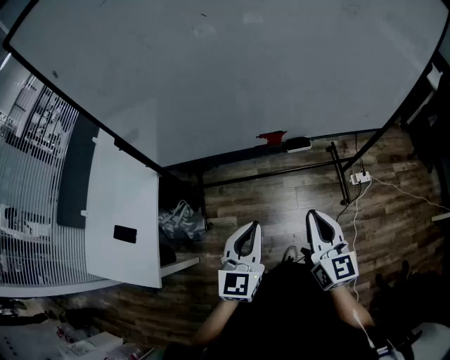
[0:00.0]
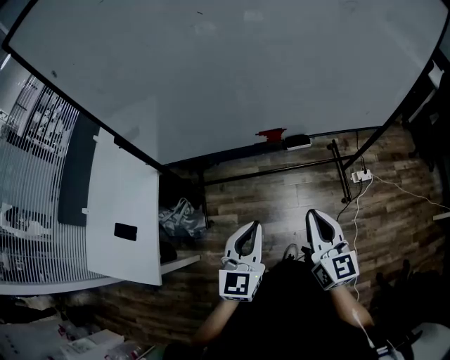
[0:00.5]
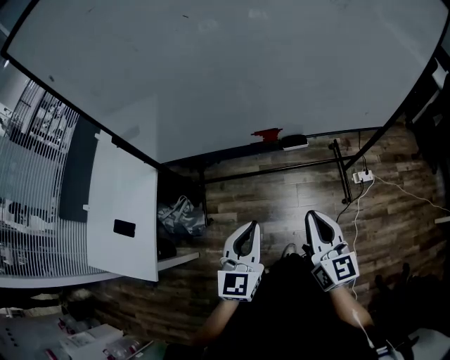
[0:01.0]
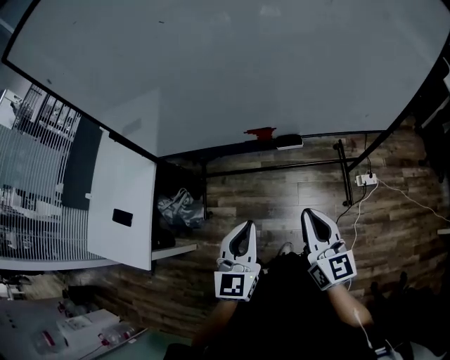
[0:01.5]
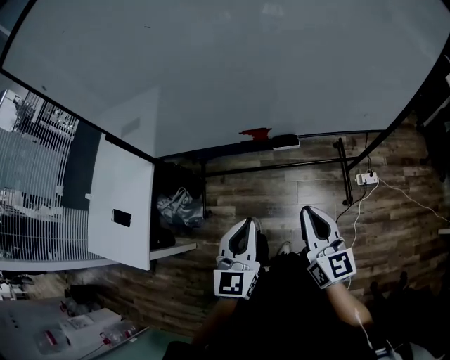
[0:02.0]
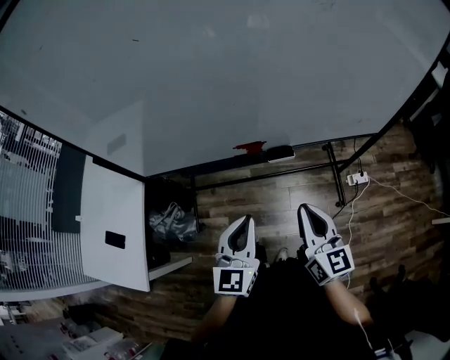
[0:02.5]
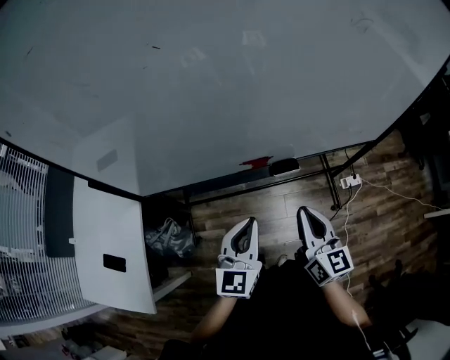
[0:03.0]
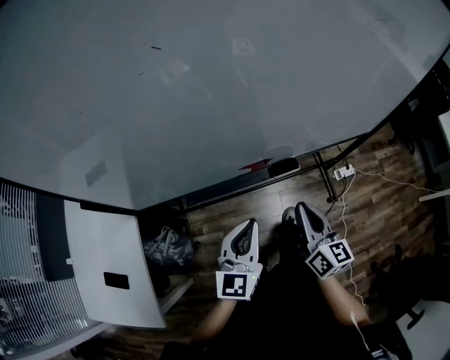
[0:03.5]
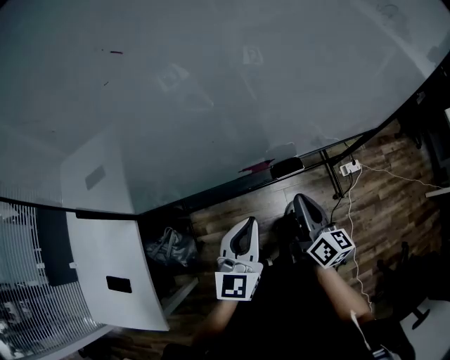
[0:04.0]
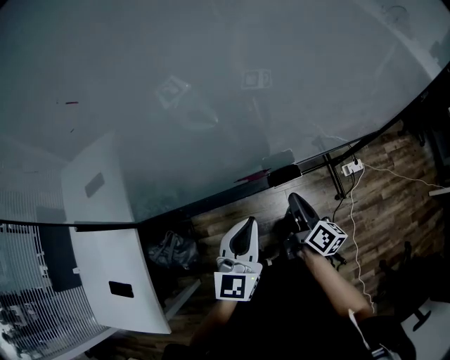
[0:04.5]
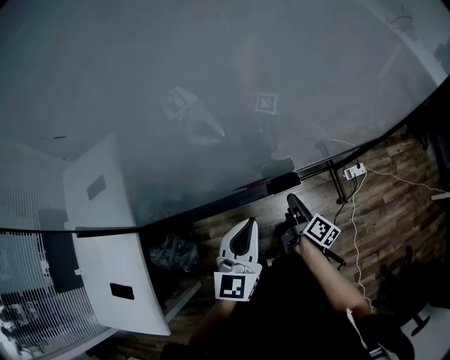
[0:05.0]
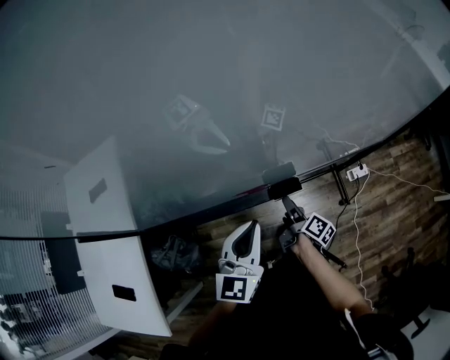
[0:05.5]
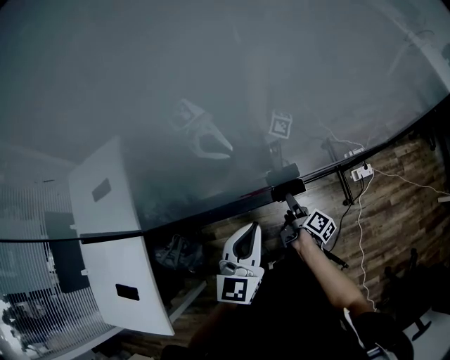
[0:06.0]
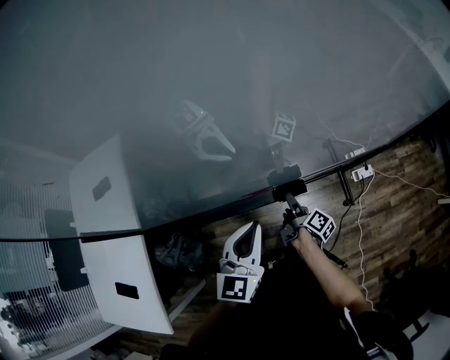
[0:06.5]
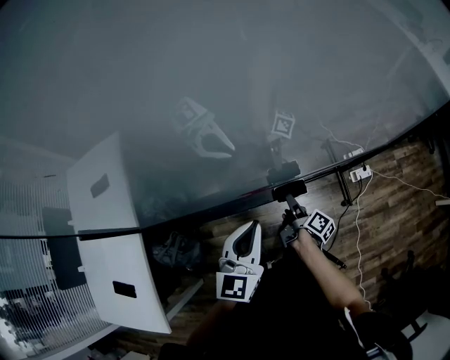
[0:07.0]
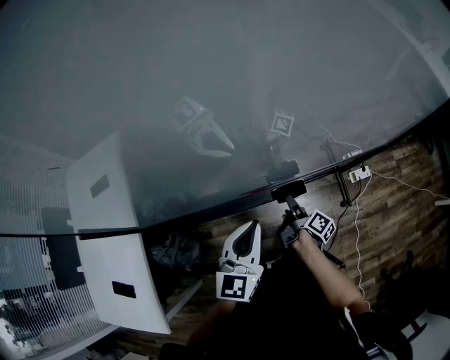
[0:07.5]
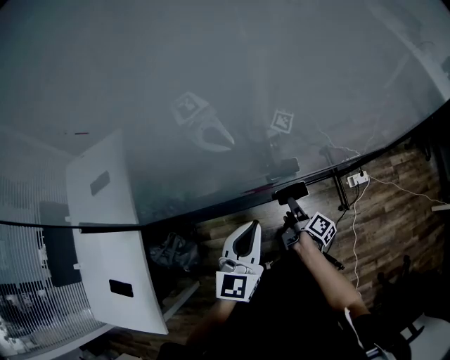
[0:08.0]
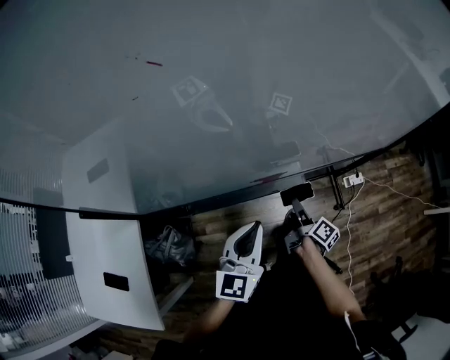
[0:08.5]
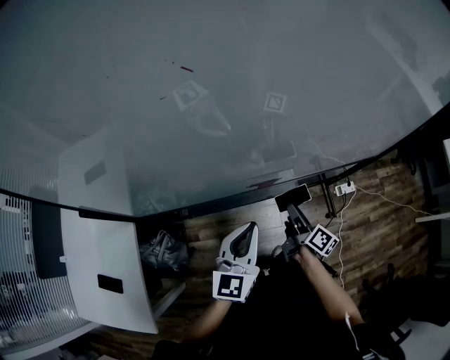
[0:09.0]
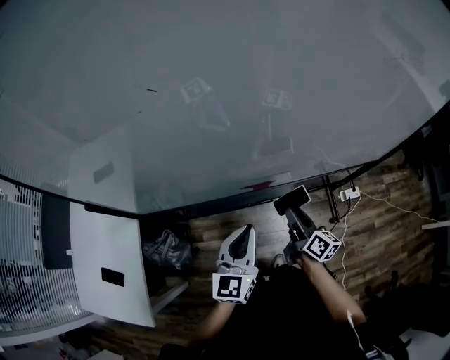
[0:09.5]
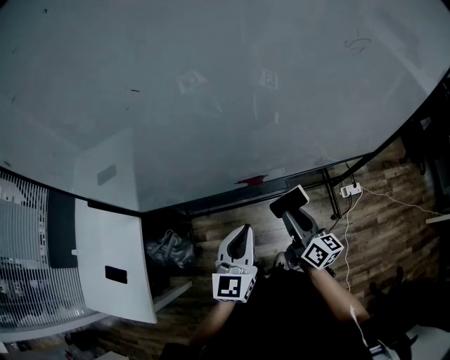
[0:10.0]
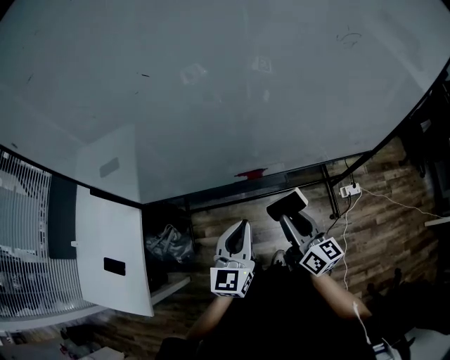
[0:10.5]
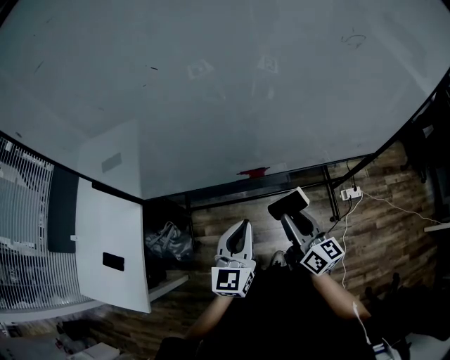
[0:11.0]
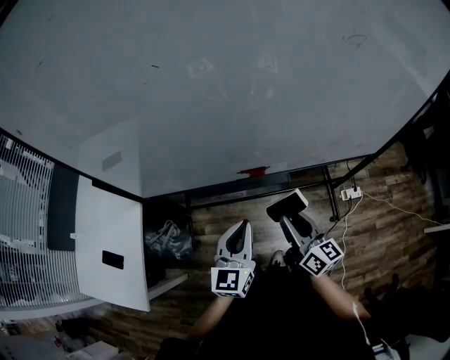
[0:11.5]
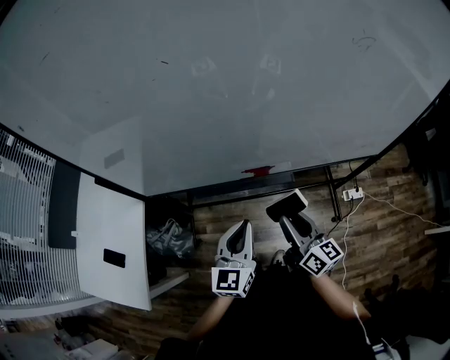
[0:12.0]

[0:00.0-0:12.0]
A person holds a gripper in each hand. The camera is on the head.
0:00.0 to 0:02.0: The grippers both shift to the right by approximately 10 cm.
0:02.0 to 0:04.0: The left gripper goes about 15 cm forward and to the left. Meanwhile the right gripper moves forward, downward and to the left, some 20 cm, and rotates about 30 degrees.
0:04.0 to 0:06.0: The right gripper moves downward and forward, roughly 20 cm, rotates around the line of its fingers by roughly 40 degrees, clockwise from behind, and opens its fingers. The left gripper shifts about 5 cm forward.
0:06.0 to 0:08.0: The two grippers keep their place.
0:08.0 to 0:10.0: The right gripper heads upward and backward, covering some 20 cm, and twists roughly 40 degrees counterclockwise, seen from behind; the left gripper heads backward, covering roughly 5 cm.
0:10.0 to 0:12.0: The right gripper ends up roughly 5 cm from where it was.

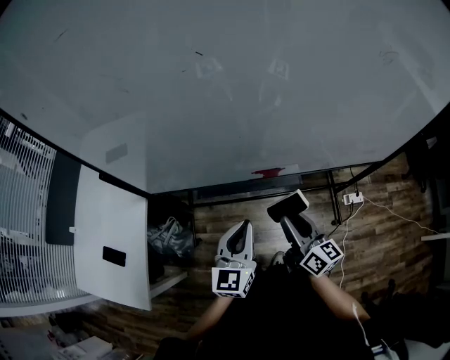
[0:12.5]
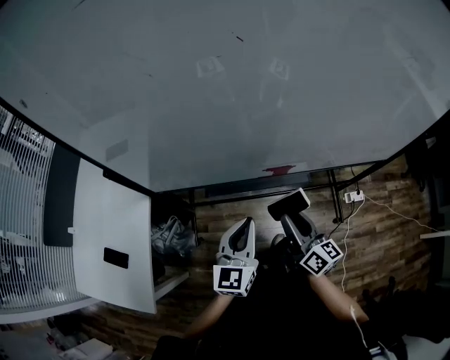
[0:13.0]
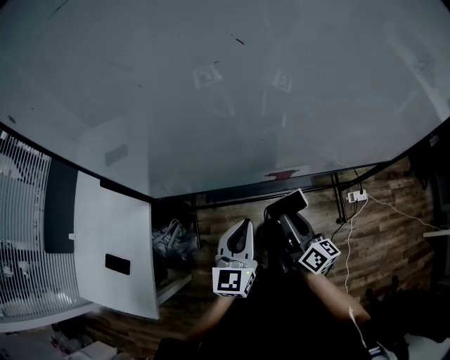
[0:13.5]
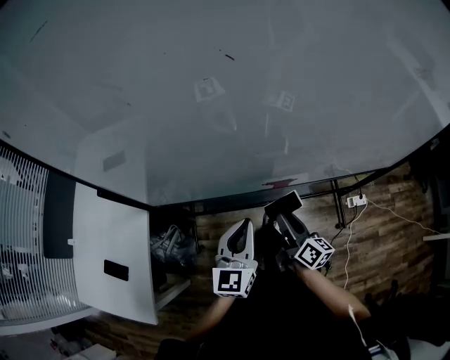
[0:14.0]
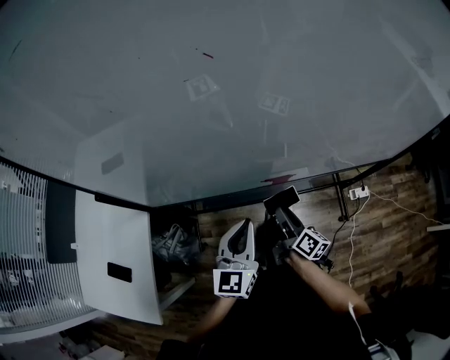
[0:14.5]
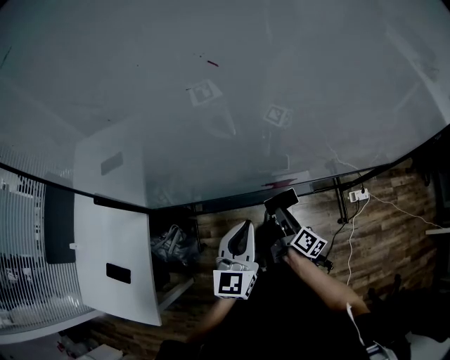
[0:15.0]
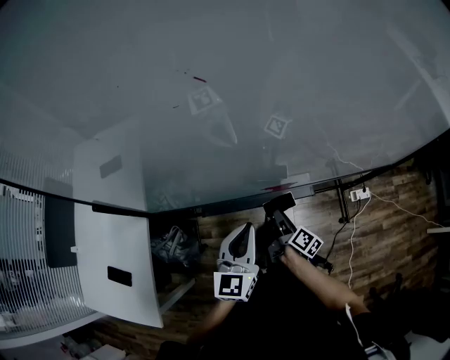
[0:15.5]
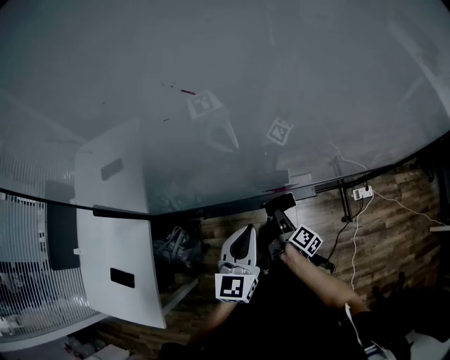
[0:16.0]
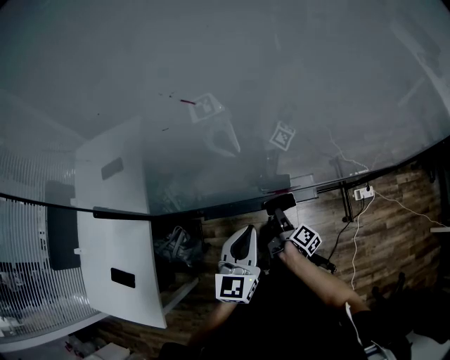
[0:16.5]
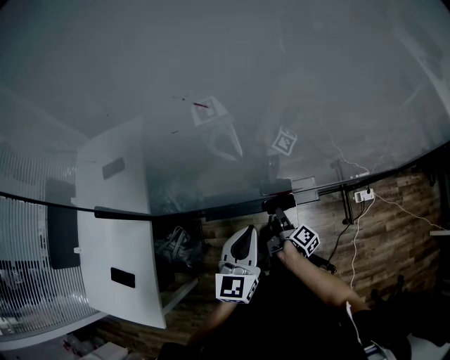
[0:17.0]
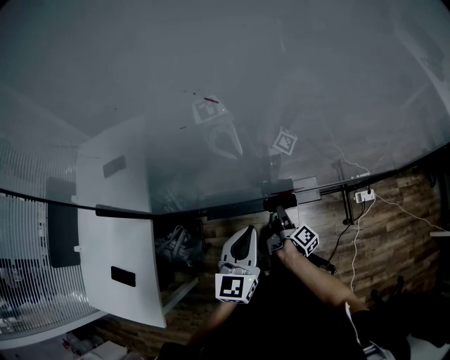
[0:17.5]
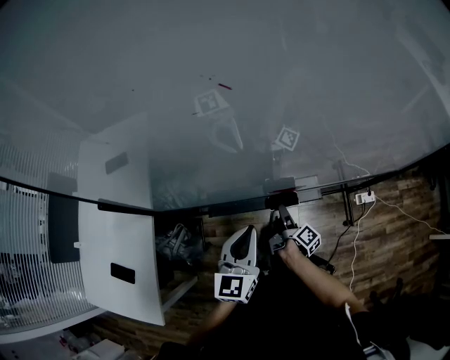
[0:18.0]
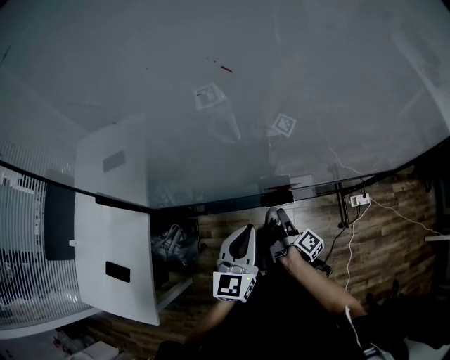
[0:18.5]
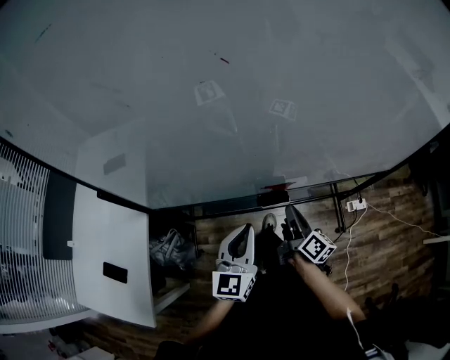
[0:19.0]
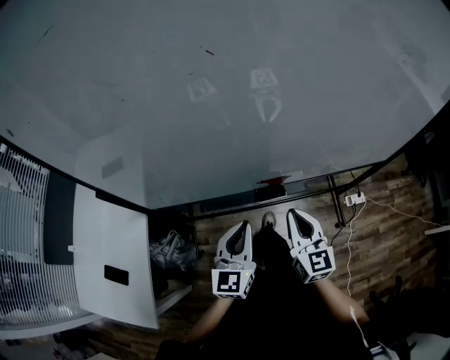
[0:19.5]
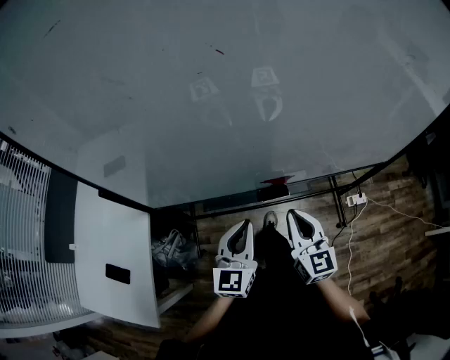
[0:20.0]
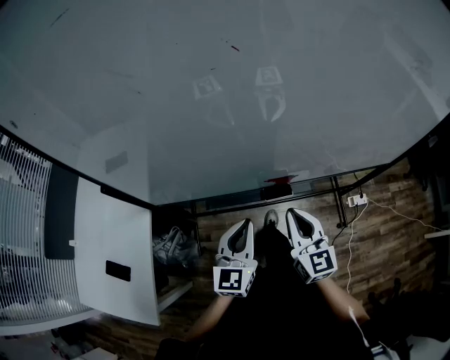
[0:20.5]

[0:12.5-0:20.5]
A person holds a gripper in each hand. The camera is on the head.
0:12.5 to 0:14.5: The left gripper shifts about 5 cm forward. The right gripper is displaced downward and forward by about 15 cm, and turns by approximately 30 degrees.
0:14.5 to 0:16.5: The right gripper moves downward, roughly 10 cm, and changes its angle by roughly 20 degrees.
0:16.5 to 0:18.5: The grippers stay close to where they were, moving slightly.
0:18.5 to 0:20.5: The right gripper moves upward, roughly 20 cm, rolls counterclockwise, seen from behind, by approximately 80 degrees, and closes its fingers.

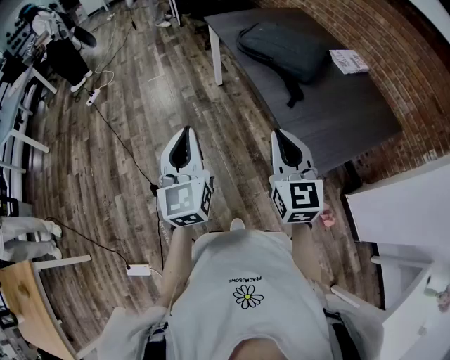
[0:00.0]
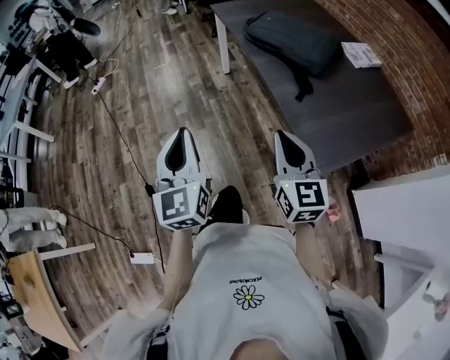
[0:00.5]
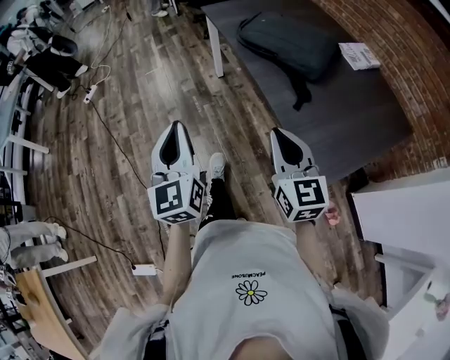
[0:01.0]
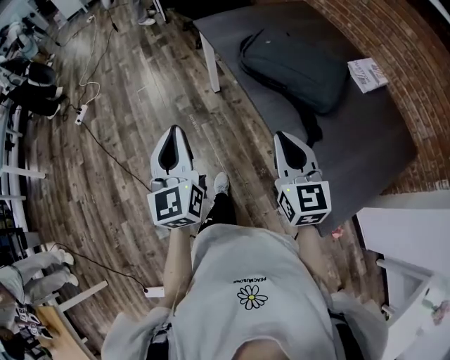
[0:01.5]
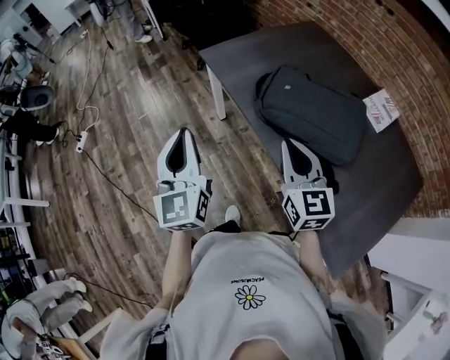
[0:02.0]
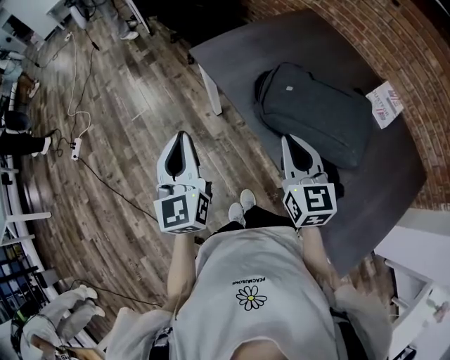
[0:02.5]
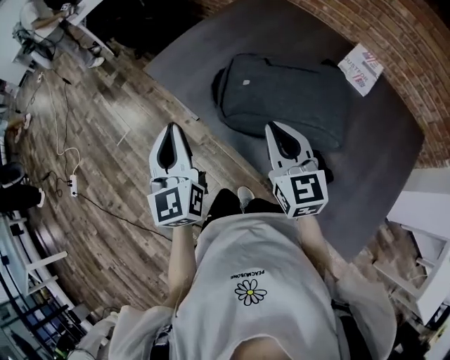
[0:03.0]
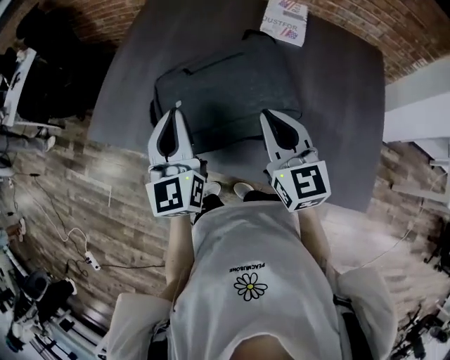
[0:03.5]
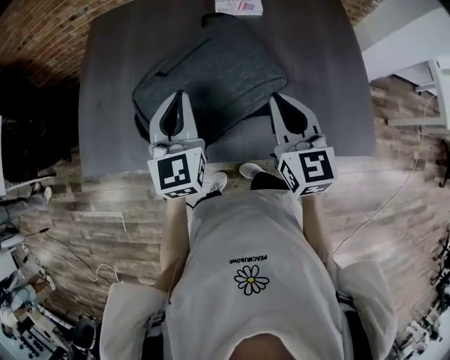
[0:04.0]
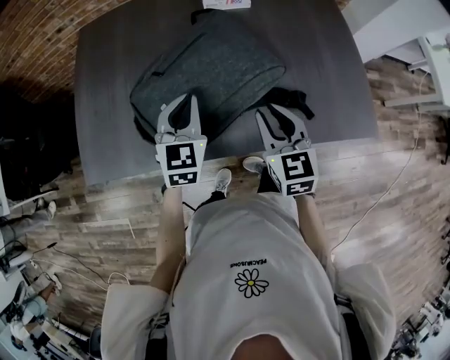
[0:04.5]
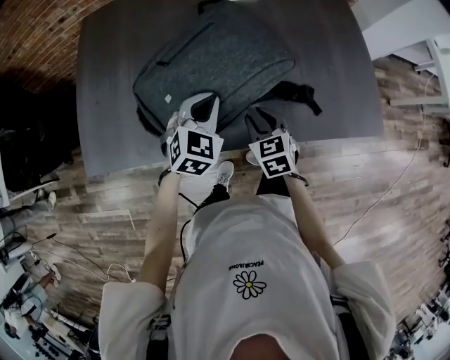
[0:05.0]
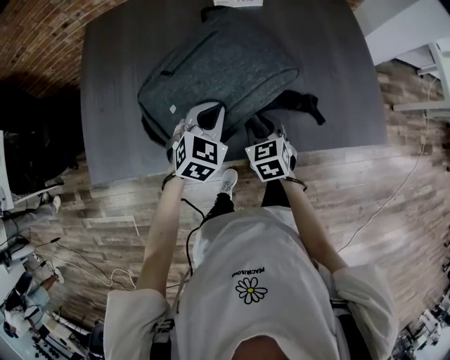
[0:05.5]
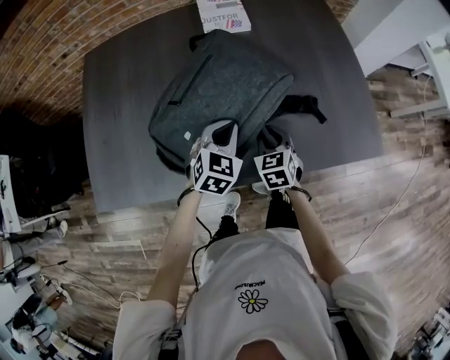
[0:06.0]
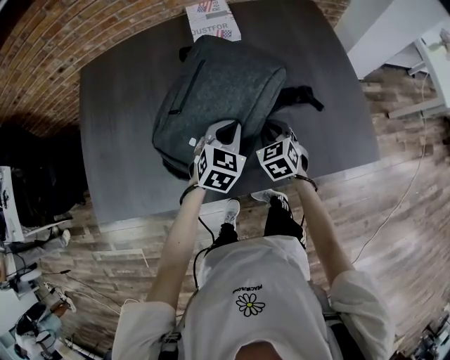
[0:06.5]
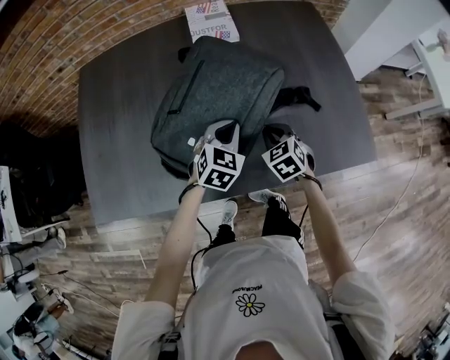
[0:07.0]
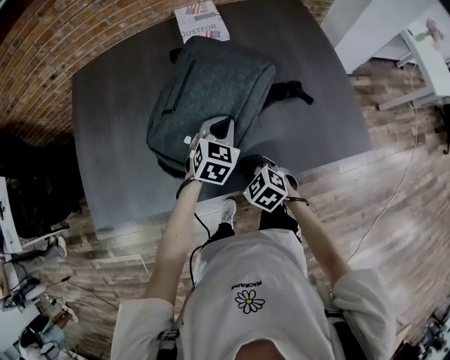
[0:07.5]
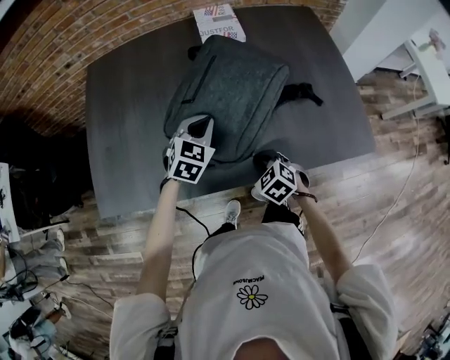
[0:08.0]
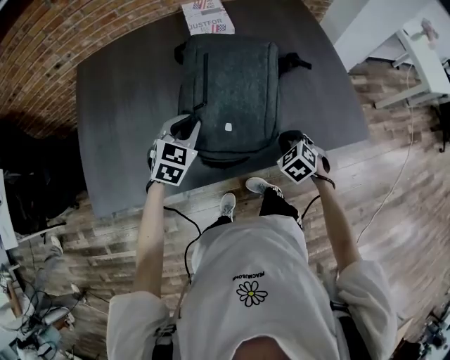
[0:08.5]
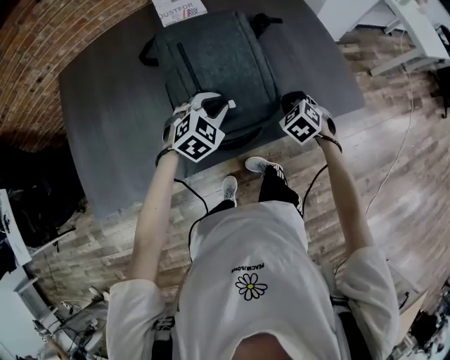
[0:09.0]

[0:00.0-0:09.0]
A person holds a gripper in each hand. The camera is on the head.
0:00.0 to 0:02.0: Both grippers are carried forward, about 40 cm.
0:02.0 to 0:04.5: The right gripper ends up approximately 20 cm from where it was, swivels about 60 degrees, and opens up, while the left gripper ends up roughly 40 cm from where it was, and swivels about 80 degrees.
0:04.5 to 0:07.0: The left gripper heads to the right, downward and forward, covering approximately 15 cm, and turns by some 30 degrees. The right gripper travels downward, forward and to the right by about 20 cm, turns by approximately 30 degrees, and closes up.
0:07.0 to 0:09.0: The right gripper shifts by about 10 cm, while the left gripper swivels about 30 degrees.
